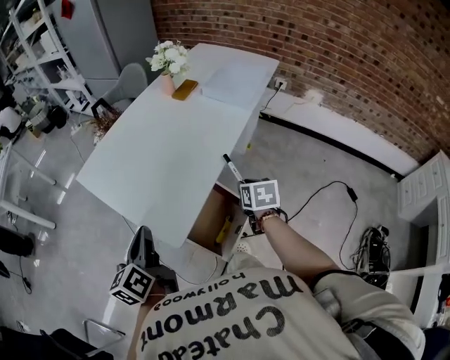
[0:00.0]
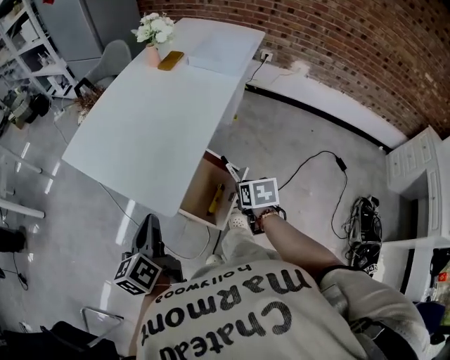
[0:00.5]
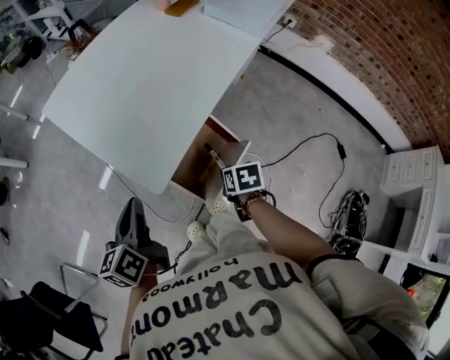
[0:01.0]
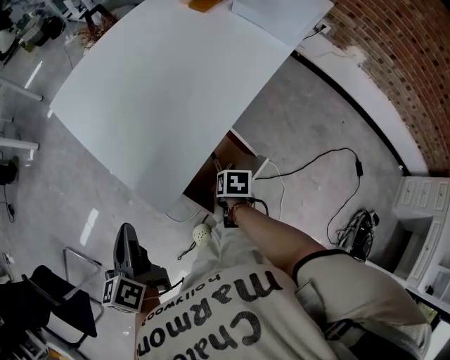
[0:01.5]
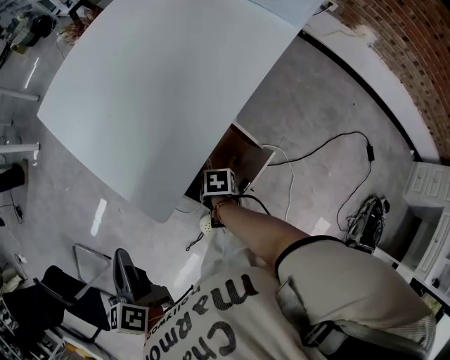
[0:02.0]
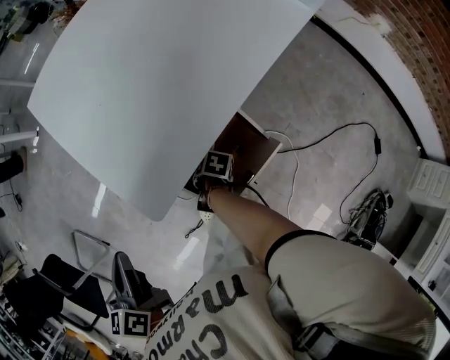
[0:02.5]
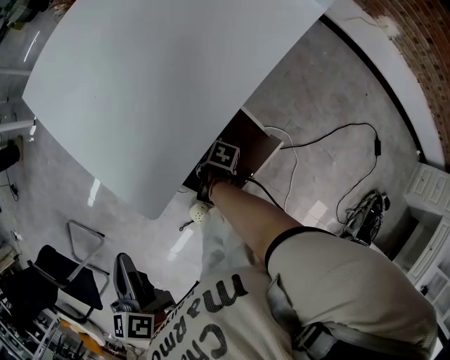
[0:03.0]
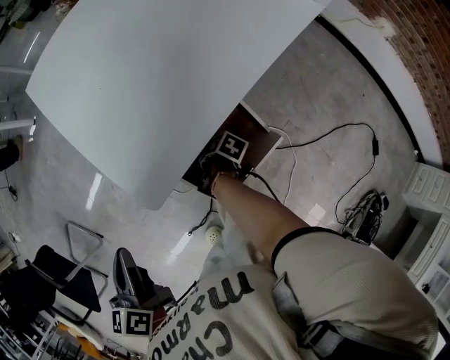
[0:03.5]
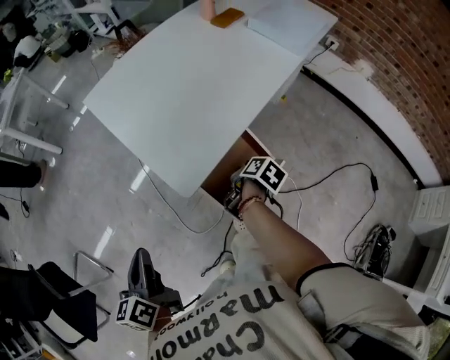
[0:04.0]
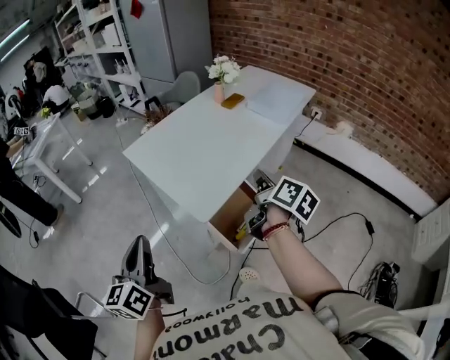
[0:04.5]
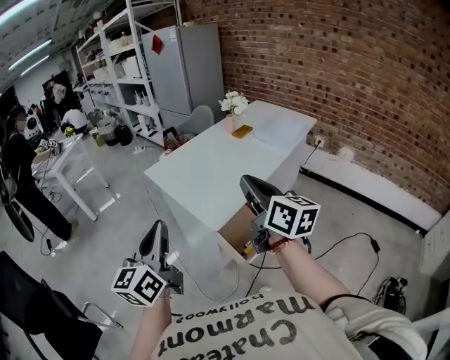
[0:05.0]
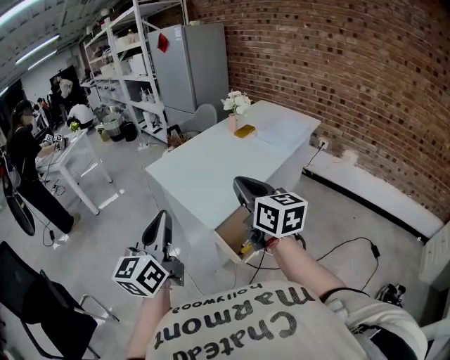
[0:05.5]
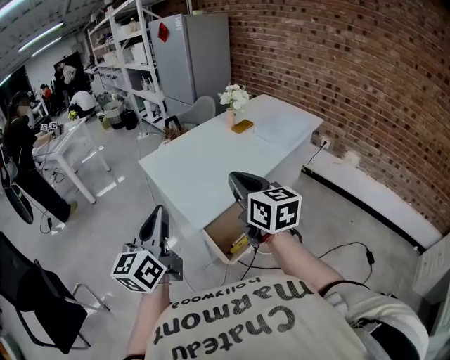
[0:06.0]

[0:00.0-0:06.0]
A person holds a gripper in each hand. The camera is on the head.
0:00.0 to 0:02.0: The left gripper shifts approximately 10 cm downward, and turns by approximately 30 degrees. The right gripper is displaced downward by roughly 30 cm, and rotates approximately 40 degrees.
0:02.0 to 0:04.0: The right gripper is displaced upward by some 15 cm, and swivels approximately 40 degrees; the left gripper shifts by about 10 cm.
0:04.0 to 0:06.0: The right gripper is displaced upward by approximately 50 cm, and points its fingers roughly 50 degrees further upward, while the left gripper shifts about 25 cm upward, and points its fingers roughly 30 degrees further upward.

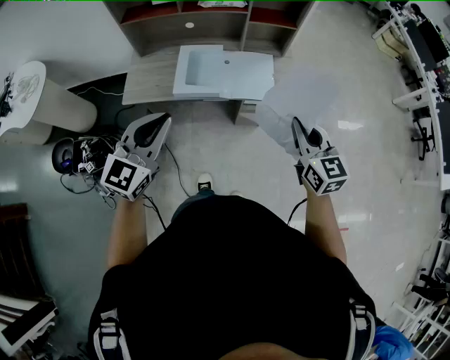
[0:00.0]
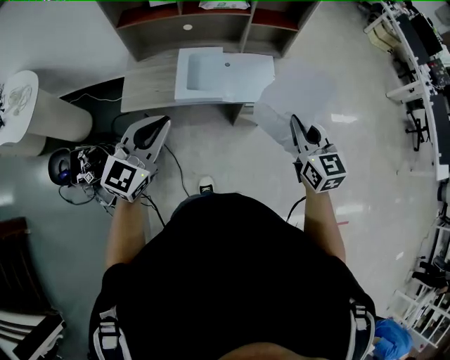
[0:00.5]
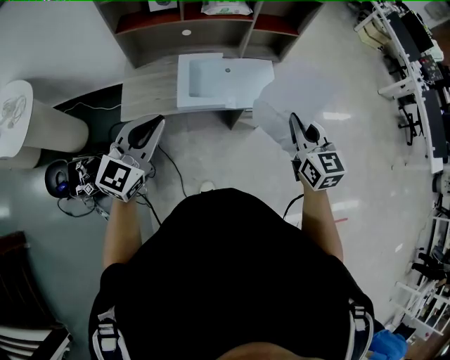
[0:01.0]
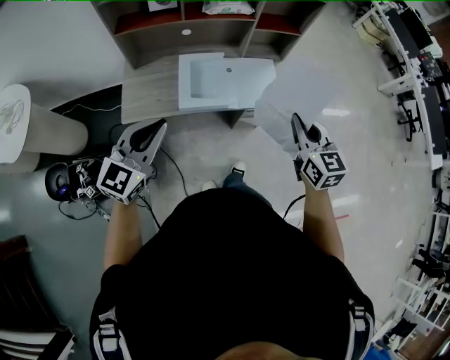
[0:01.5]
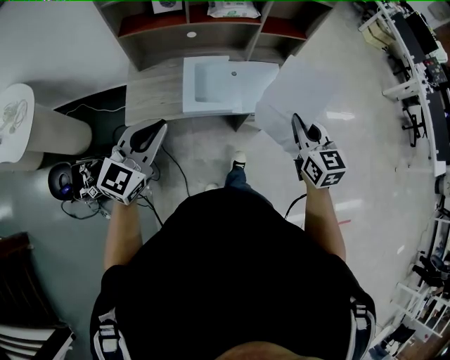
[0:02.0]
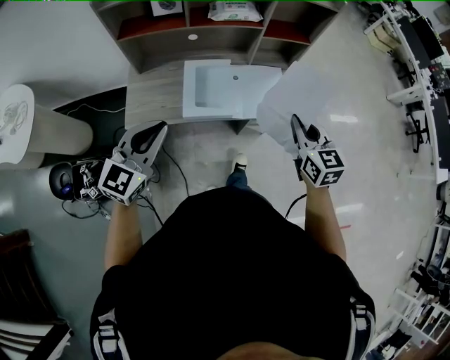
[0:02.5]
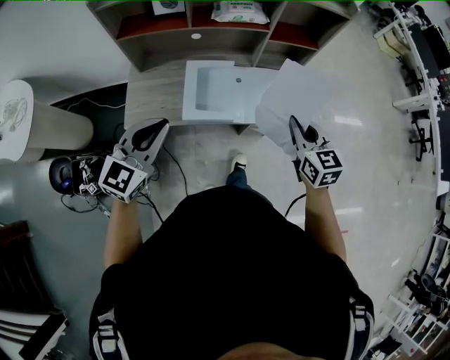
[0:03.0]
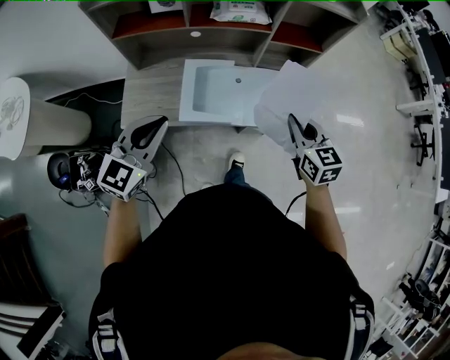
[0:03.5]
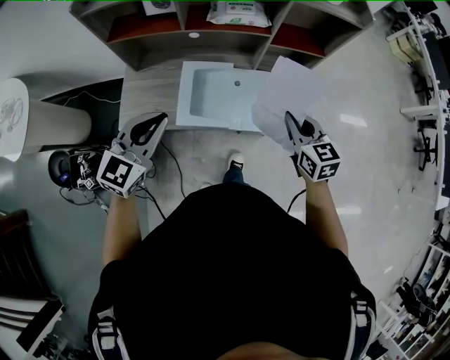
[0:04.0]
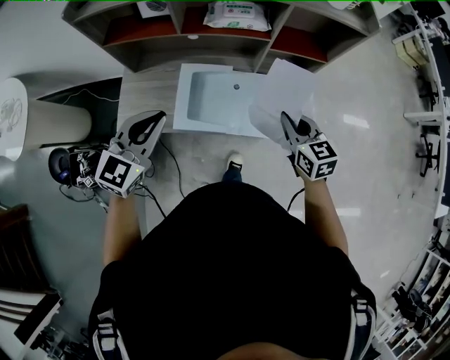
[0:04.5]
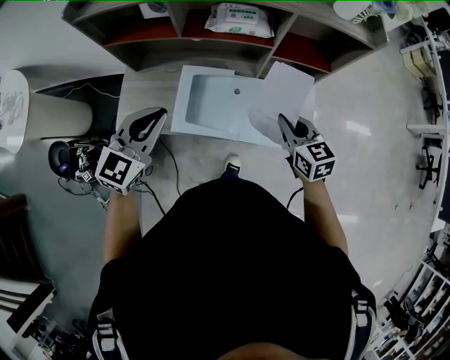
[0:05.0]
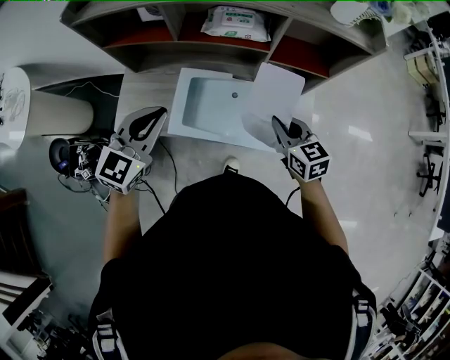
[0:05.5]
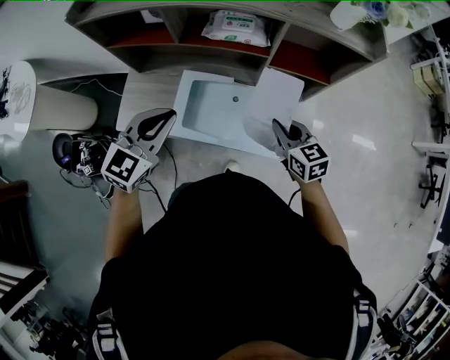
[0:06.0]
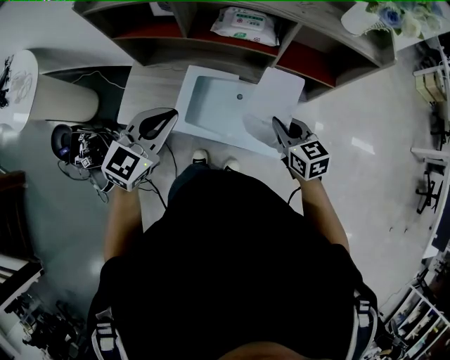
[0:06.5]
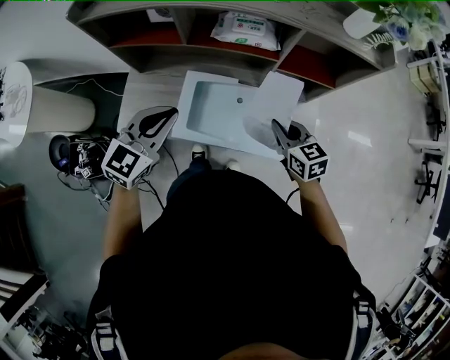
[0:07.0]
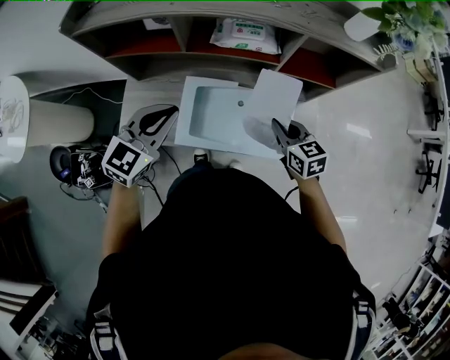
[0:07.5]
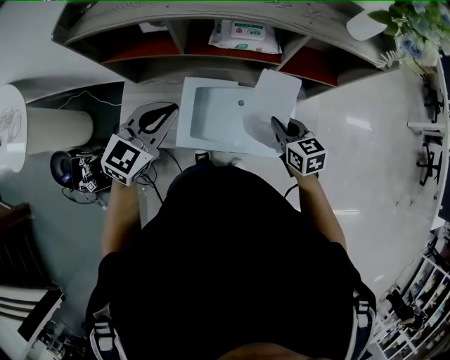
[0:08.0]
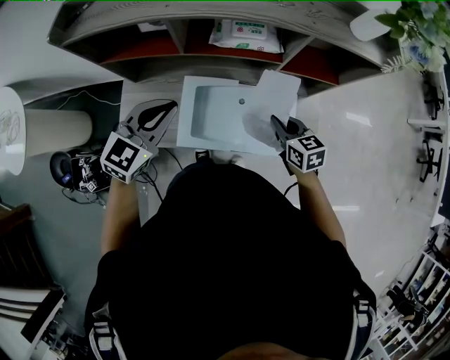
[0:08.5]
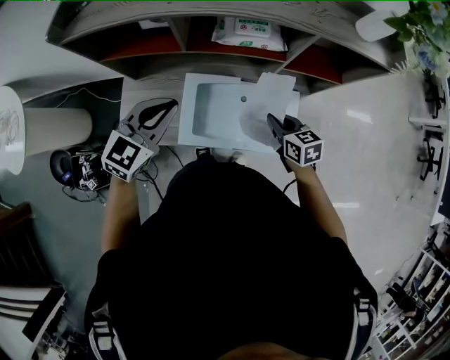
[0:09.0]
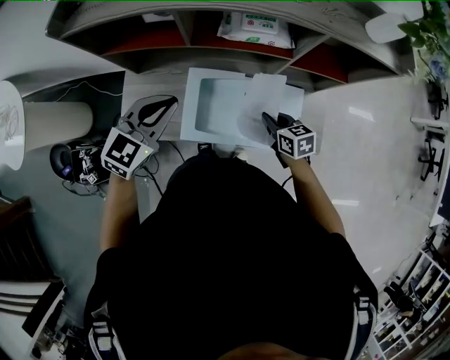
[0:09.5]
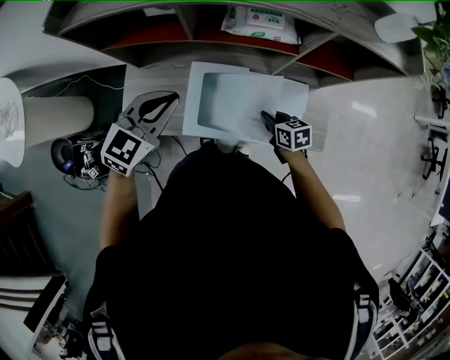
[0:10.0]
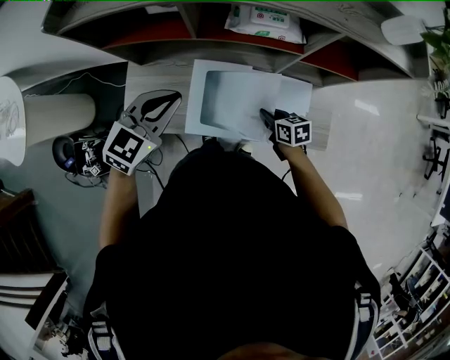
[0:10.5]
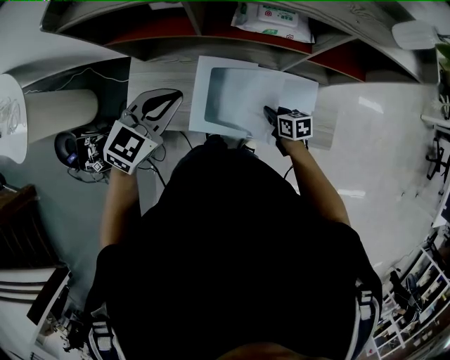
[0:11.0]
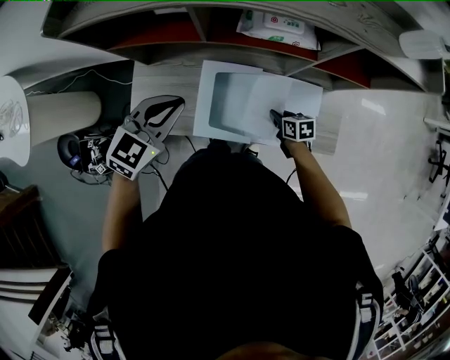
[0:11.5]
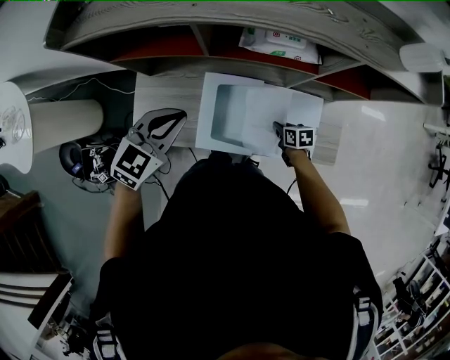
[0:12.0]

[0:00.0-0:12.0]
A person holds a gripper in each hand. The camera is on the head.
0:00.0 to 0:02.0: Both grippers travel together to the left and forward, some 15 cm.
0:02.0 to 0:04.0: The left gripper goes about 15 cm forward. The right gripper travels forward and downward by some 20 cm.
0:04.0 to 0:06.0: The left gripper shifts approximately 10 cm to the right and forward. The right gripper heads forward and downward, covering some 10 cm.
0:06.0 to 0:08.0: The left gripper moves forward and to the left, about 10 cm; the right gripper shifts roughly 5 cm to the left.
0:08.0 to 0:10.0: The right gripper travels downward by about 15 cm.
0:10.0 to 0:12.0: The right gripper goes approximately 10 cm downward.

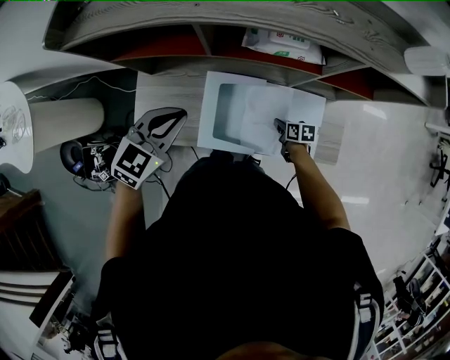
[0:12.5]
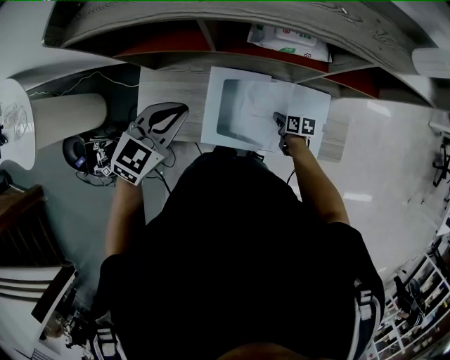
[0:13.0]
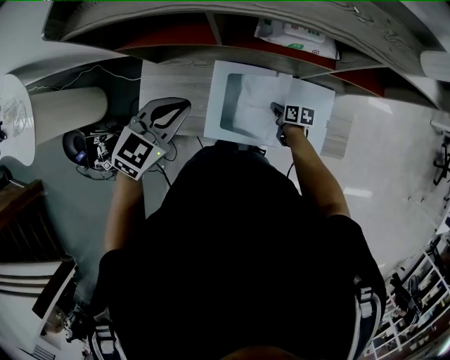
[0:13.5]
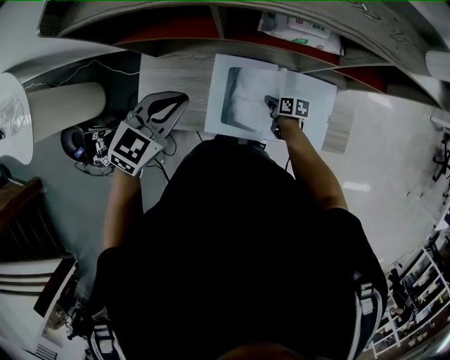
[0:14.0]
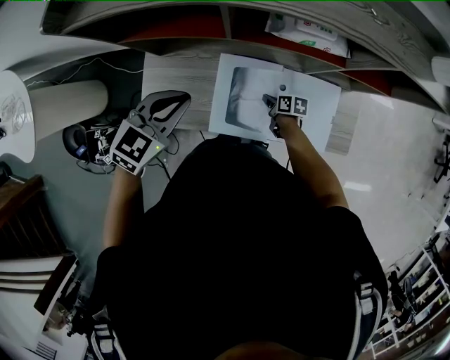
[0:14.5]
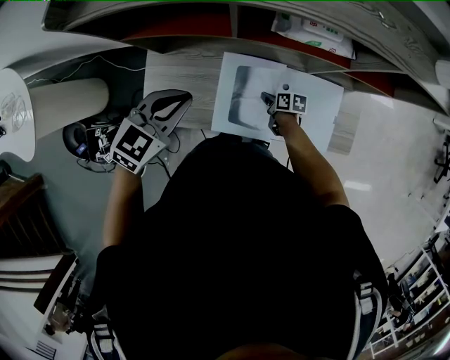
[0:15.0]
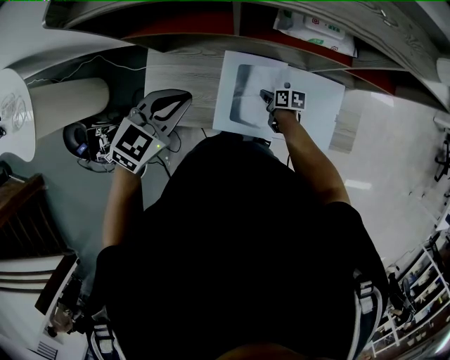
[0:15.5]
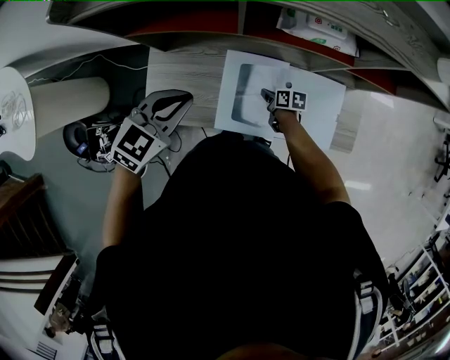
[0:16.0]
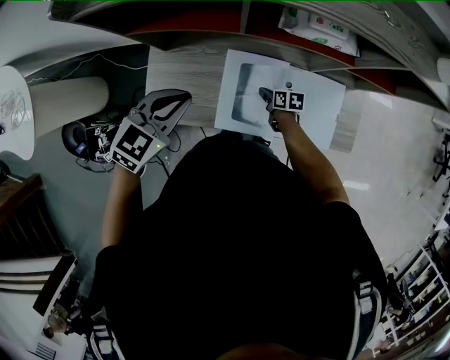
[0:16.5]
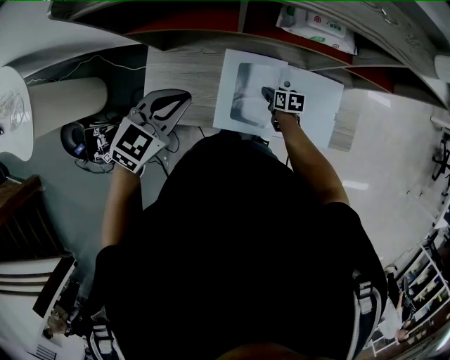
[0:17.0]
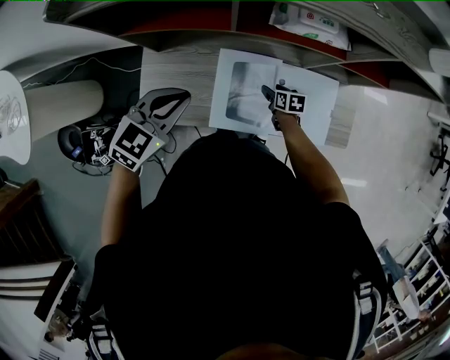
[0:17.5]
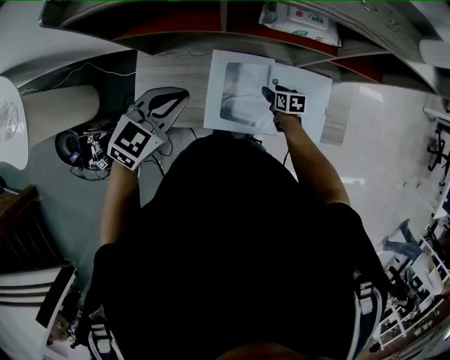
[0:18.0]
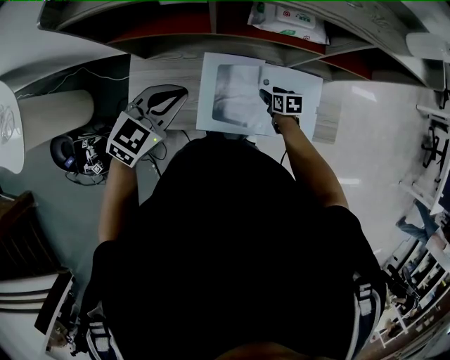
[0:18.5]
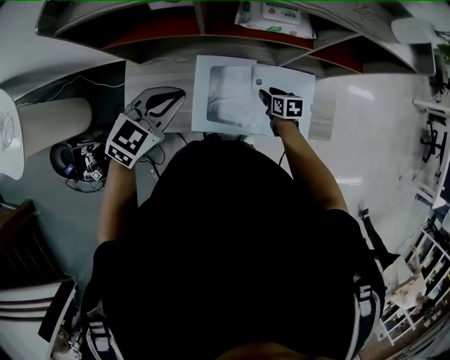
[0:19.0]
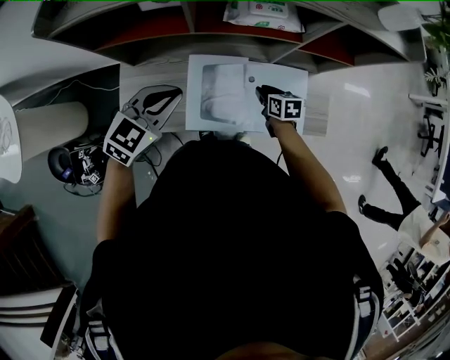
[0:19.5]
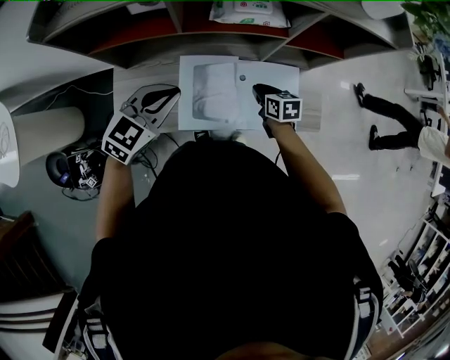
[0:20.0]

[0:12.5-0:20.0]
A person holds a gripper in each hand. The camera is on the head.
0:12.5 to 0:14.5: The right gripper heads to the left, covering about 10 cm.
0:14.5 to 0:16.5: The right gripper opens its fingers.
0:16.5 to 0:18.0: The right gripper heads to the right, covering approximately 10 cm, and opens its fingers.
0:18.0 to 0:20.0: The right gripper heads upward, covering about 15 cm, and closes its fingers. The left gripper moves to the right, roughly 10 cm.

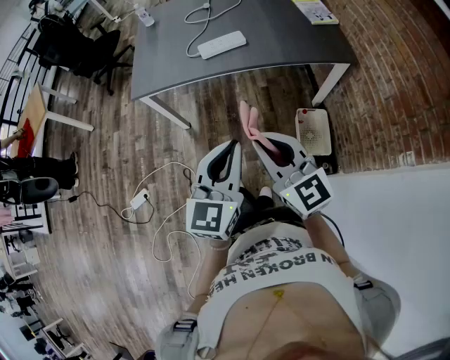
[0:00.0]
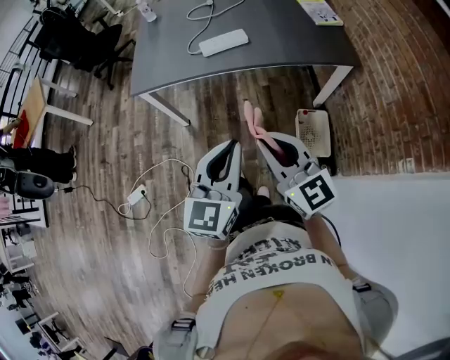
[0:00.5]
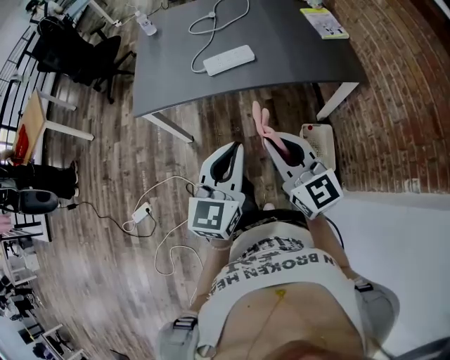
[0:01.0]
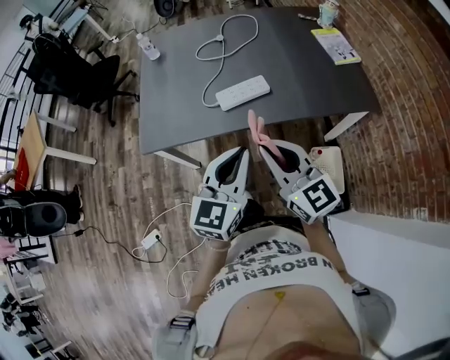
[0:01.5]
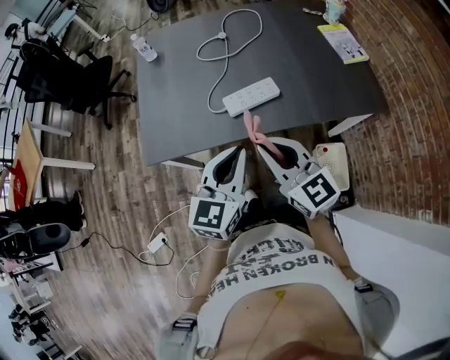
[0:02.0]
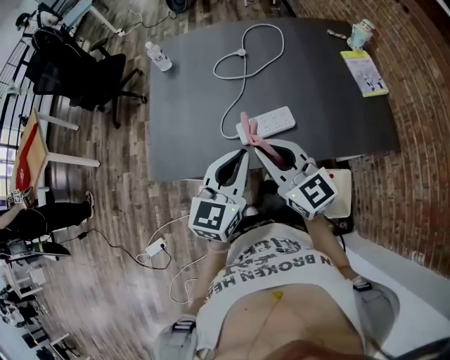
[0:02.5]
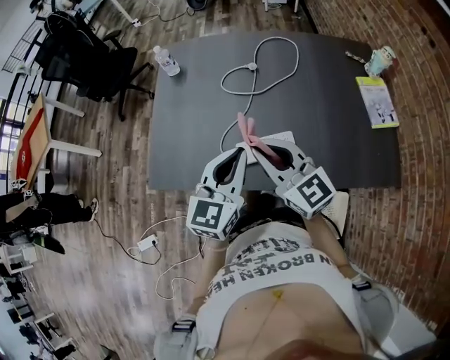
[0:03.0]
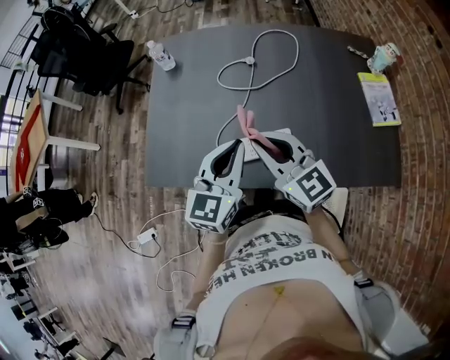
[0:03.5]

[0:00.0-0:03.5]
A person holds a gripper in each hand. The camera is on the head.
0:00.0 to 0:02.0: The grippers both shift forward by about 35 cm.
0:02.0 to 0:03.5: Both grippers travel together forward, approximately 25 cm.
